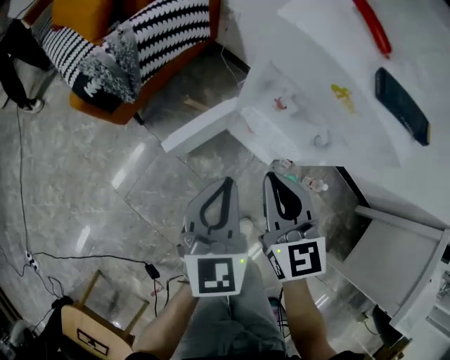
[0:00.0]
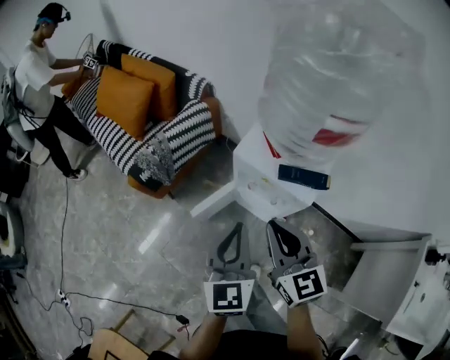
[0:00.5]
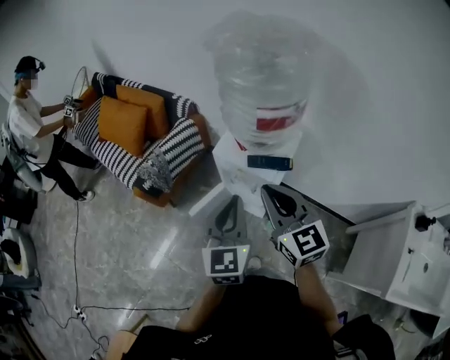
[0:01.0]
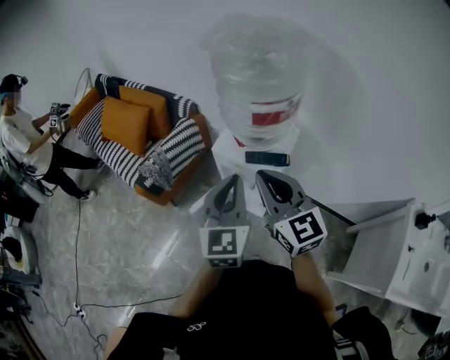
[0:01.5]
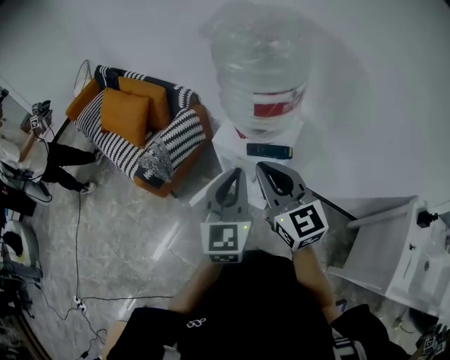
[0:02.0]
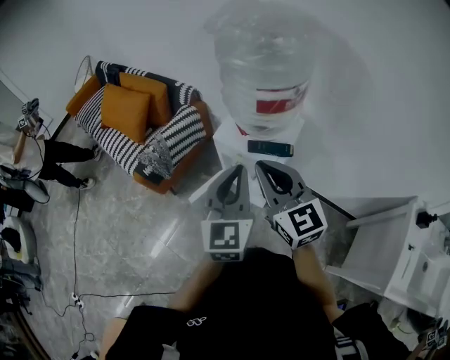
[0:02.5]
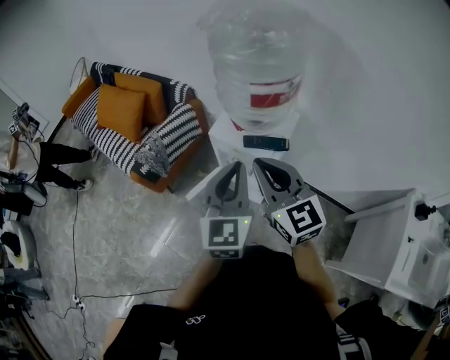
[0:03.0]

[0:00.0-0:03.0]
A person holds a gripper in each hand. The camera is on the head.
0.0 to 1.5 s: Both grippers move upward, some 40 cm. The right gripper rotates about 20 degrees.
1.5 to 3.0 s: There are only small adjustments of the grippers.

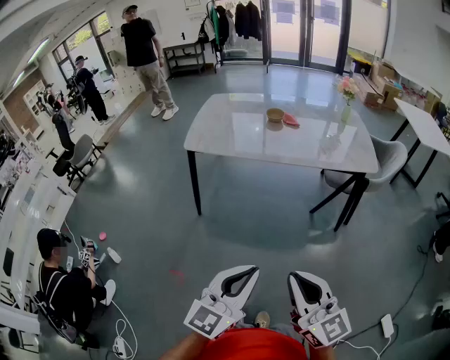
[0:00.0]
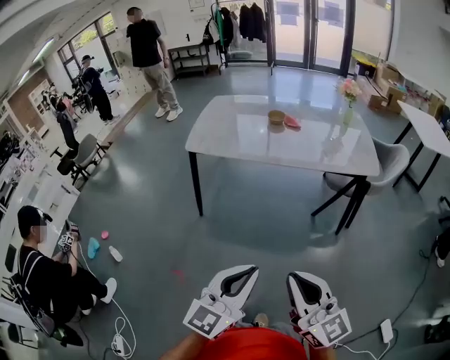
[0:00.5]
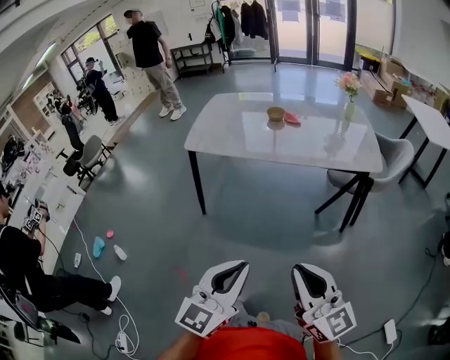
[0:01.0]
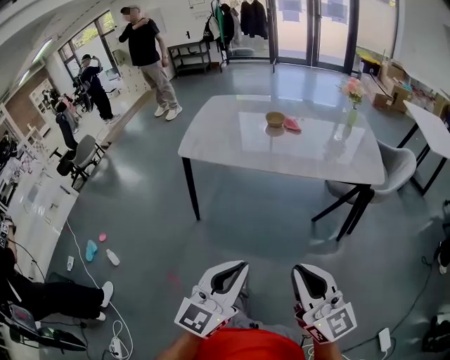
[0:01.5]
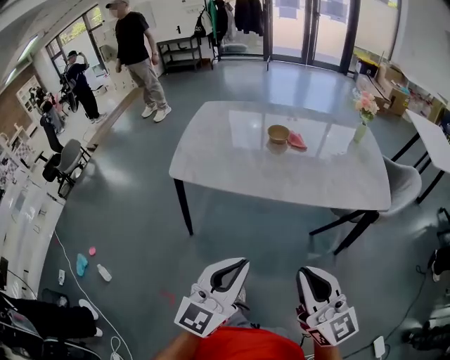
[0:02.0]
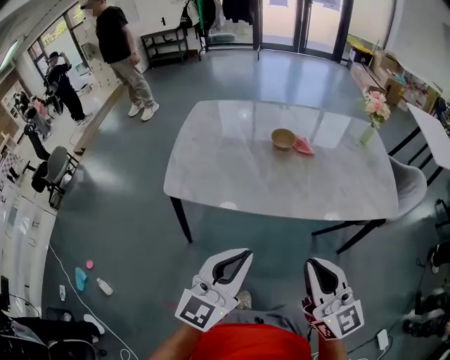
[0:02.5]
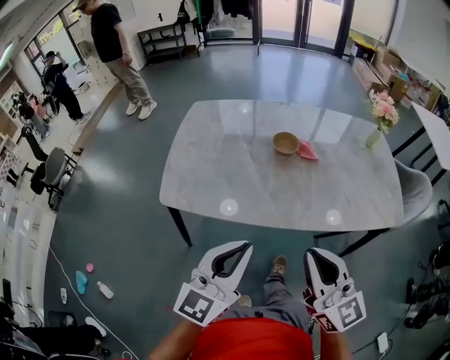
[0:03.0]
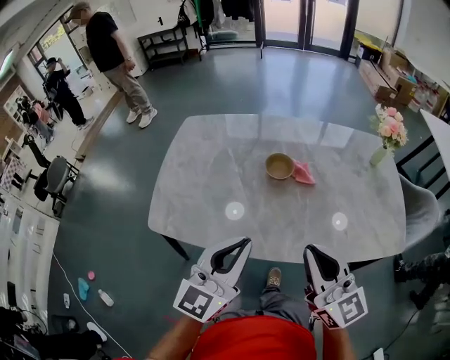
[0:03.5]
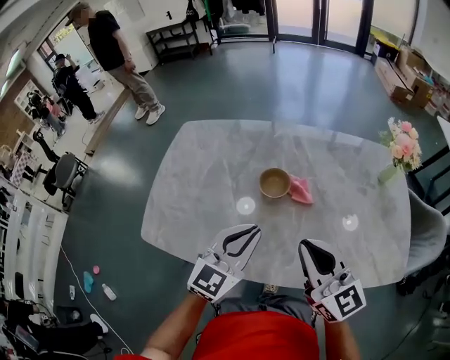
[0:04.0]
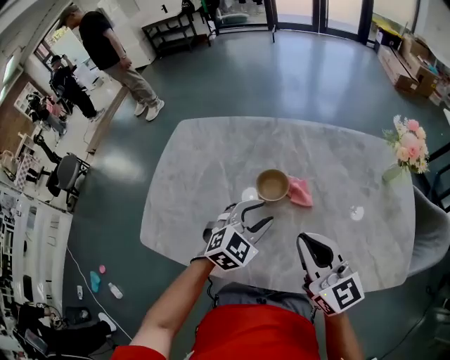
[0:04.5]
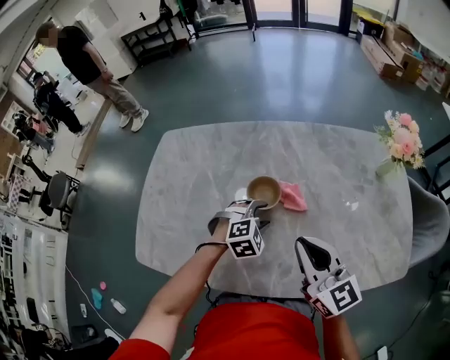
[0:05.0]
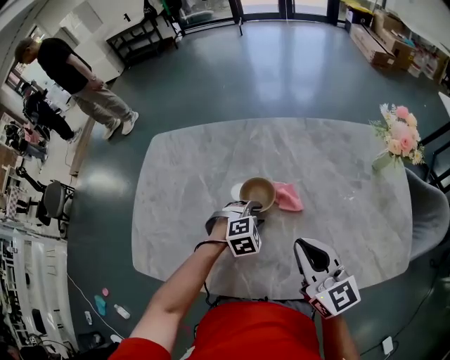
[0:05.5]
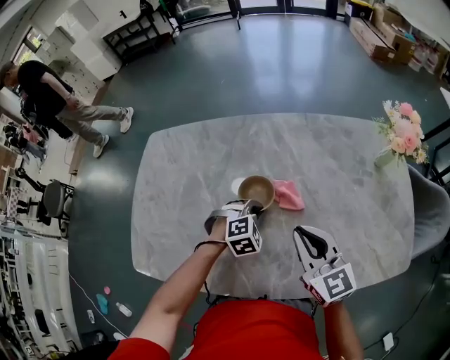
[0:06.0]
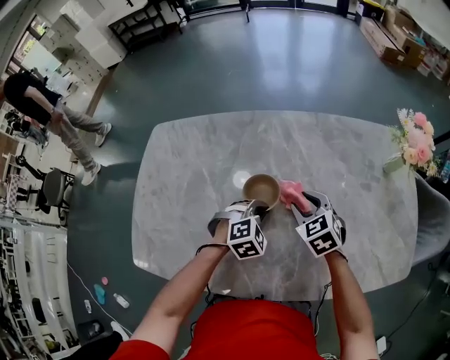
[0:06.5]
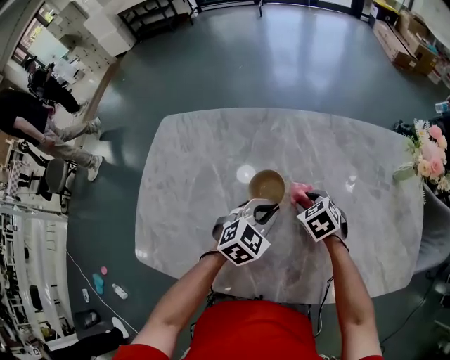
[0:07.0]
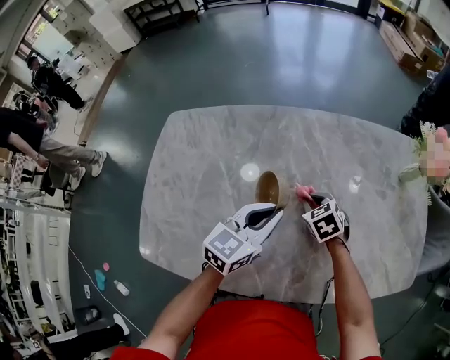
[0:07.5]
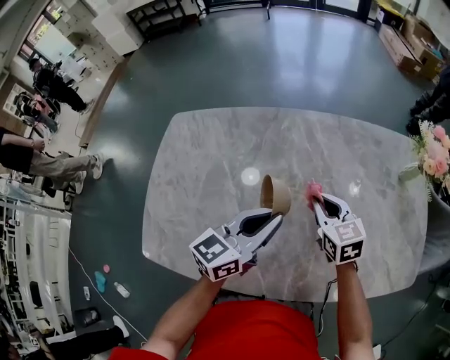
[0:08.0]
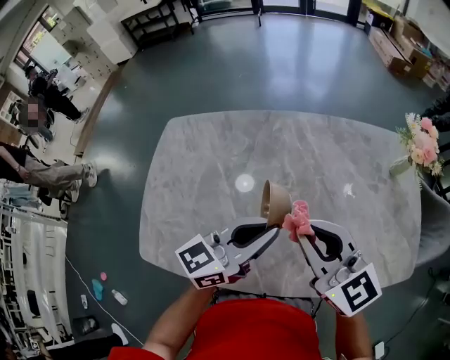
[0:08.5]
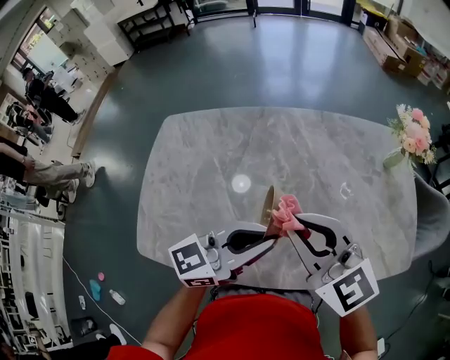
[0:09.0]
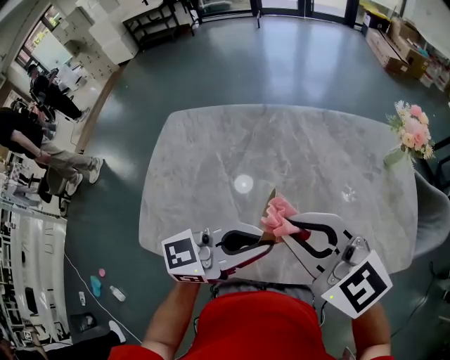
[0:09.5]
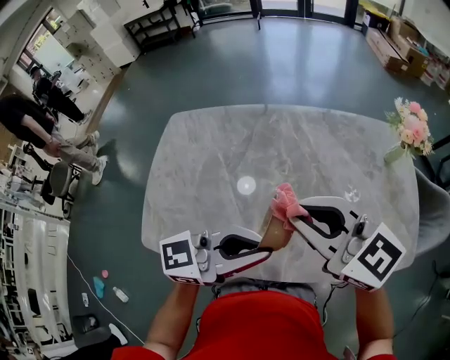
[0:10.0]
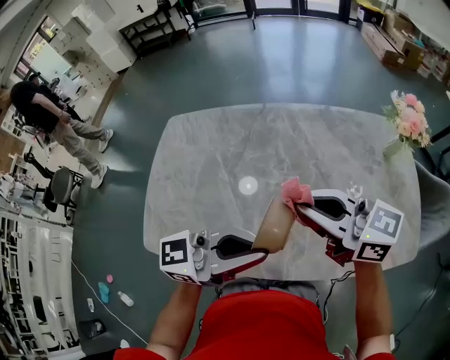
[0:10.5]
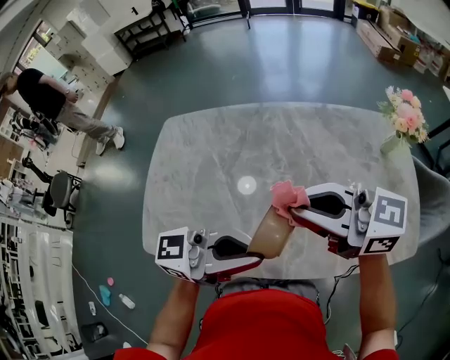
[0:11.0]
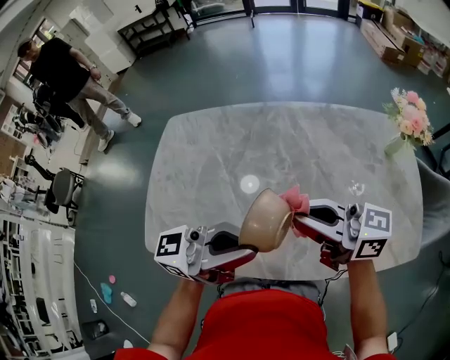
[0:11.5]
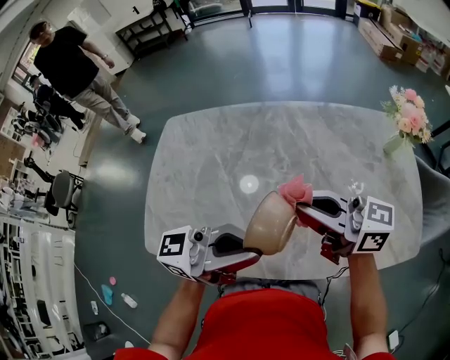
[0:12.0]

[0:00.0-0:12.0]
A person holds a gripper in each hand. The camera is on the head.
0.0 to 2.0 s: The grippers both shift forward by about 25 cm.
2.0 to 4.0 s: Both grippers are carried forward, approximately 40 cm.
4.0 to 6.0 s: The right gripper heads forward and downward, covering roughly 15 cm. The left gripper shifts approximately 25 cm downward and forward, tips its fingers downward by approximately 50 degrees, and opens, then closes once more.
6.0 to 8.0 s: The right gripper shifts some 15 cm forward and downward, and opens and closes again. Meanwhile the left gripper is displaced upward by approximately 20 cm, and points its fingers roughly 60 degrees further upward.
8.0 to 10.0 s: The left gripper shifts by some 20 cm, and rotates roughly 30 degrees. Meanwhile the right gripper goes about 25 cm upward, and changes its angle by roughly 40 degrees.
10.0 to 12.0 s: The left gripper turns by approximately 20 degrees, while the right gripper turns by roughly 30 degrees.

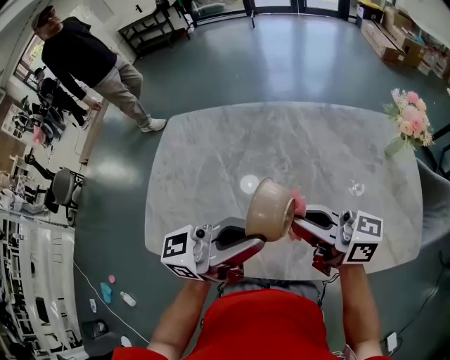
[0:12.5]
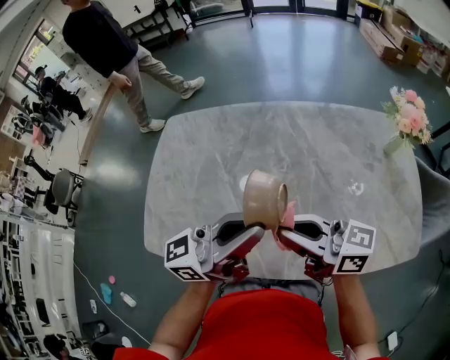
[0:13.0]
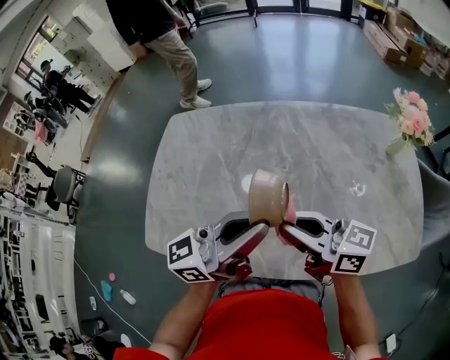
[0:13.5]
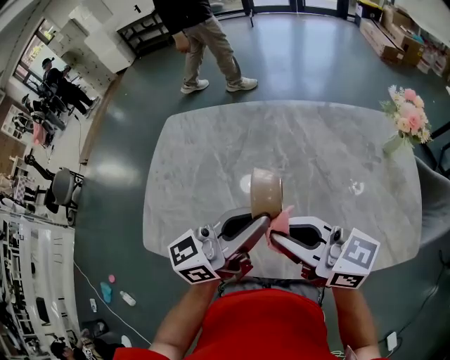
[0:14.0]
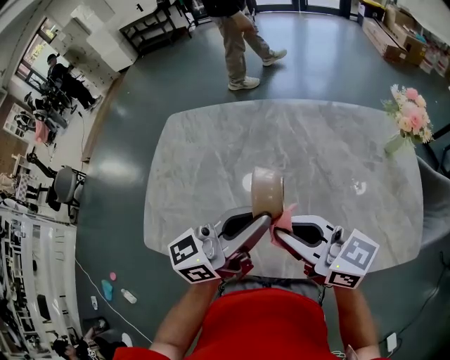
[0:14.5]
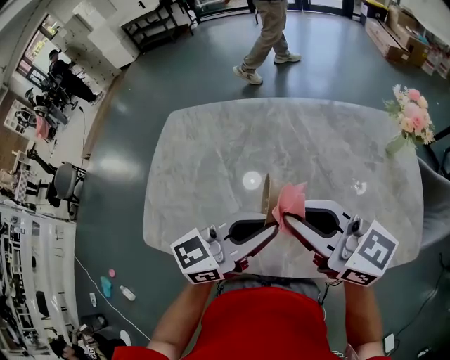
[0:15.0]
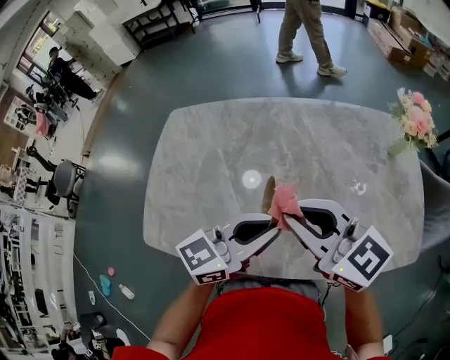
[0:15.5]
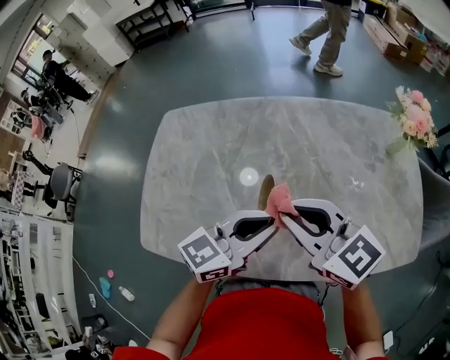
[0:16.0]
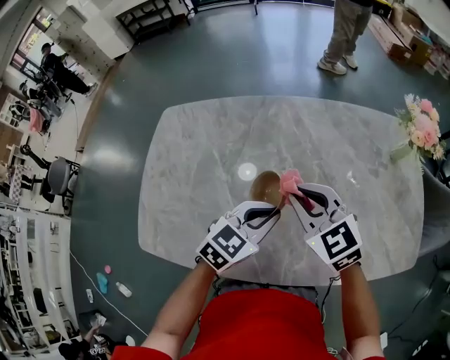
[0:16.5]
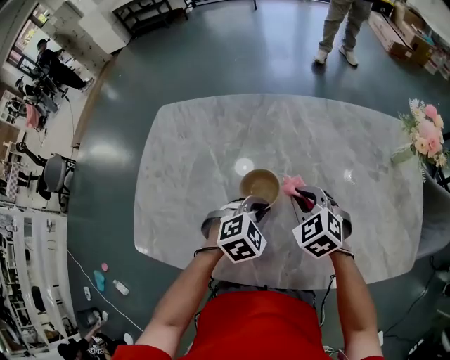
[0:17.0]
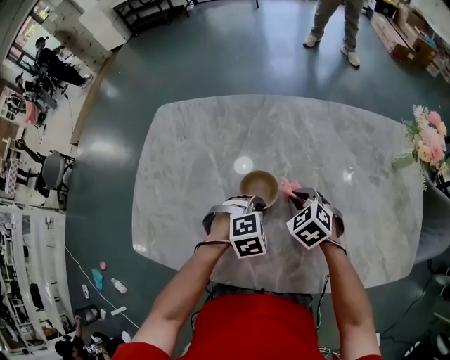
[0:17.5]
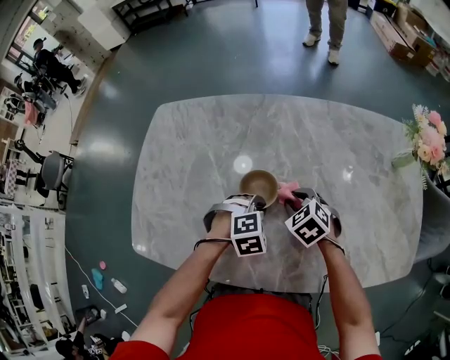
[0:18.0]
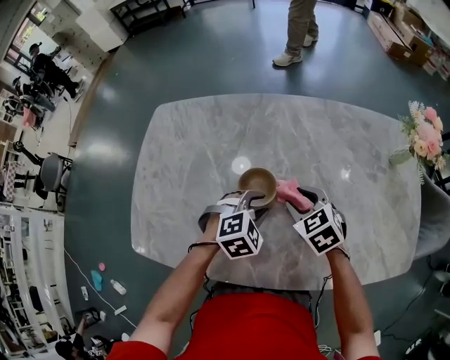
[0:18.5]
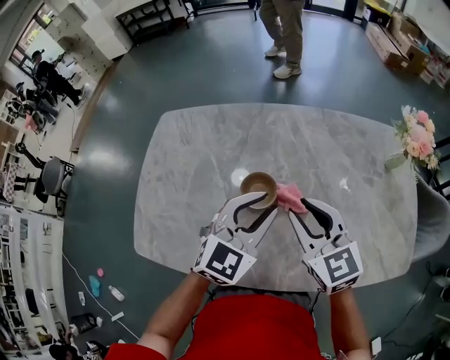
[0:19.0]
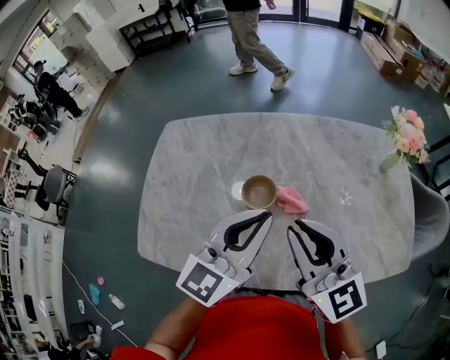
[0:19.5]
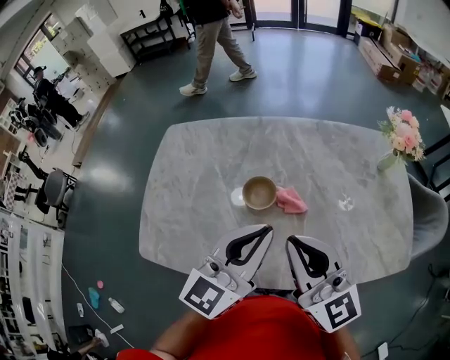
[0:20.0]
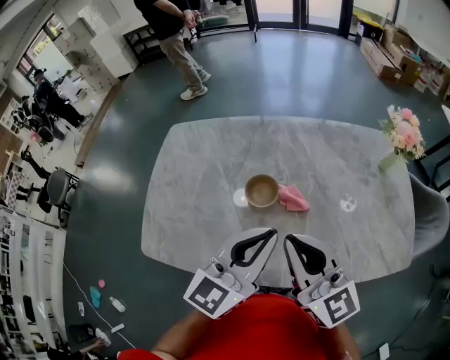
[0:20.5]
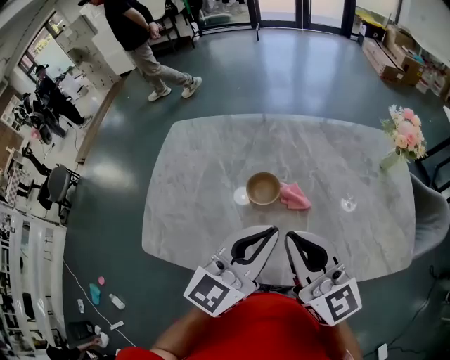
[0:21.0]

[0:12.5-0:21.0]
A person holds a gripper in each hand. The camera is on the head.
12.5 to 14.5 s: The left gripper ends up approximately 5 cm from where it was, and swivels approximately 20 degrees.
14.5 to 16.5 s: The right gripper moves forward and downward, approximately 15 cm, and turns by some 40 degrees; the left gripper goes roughly 15 cm downward, and tilts its fingers about 50 degrees downward.
16.5 to 19.0 s: The right gripper goes downward and returns, about 20 cm each way, and opens. The left gripper moves roughly 15 cm downward and comes back, rotates about 20 degrees, and opens its fingers.
19.0 to 21.0 s: Both grippers move backward and upward, roughly 15 cm. The left gripper rotates about 30 degrees, and closes its fingers. The right gripper rotates about 30 degrees, and closes up.

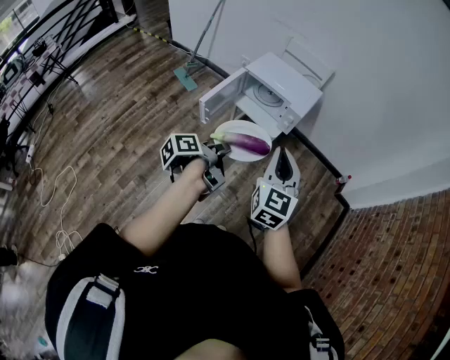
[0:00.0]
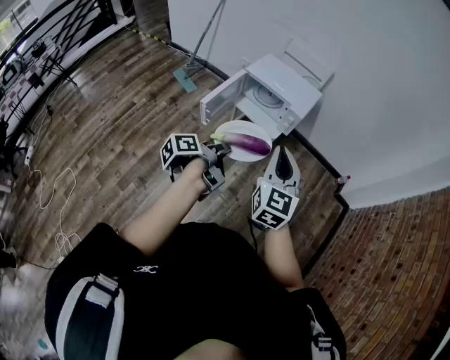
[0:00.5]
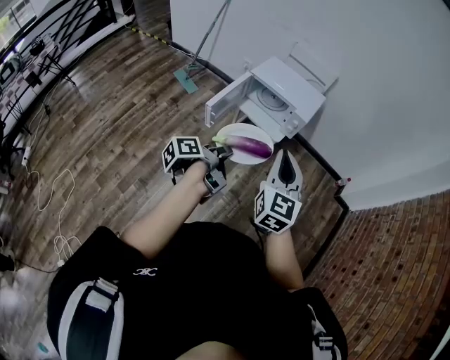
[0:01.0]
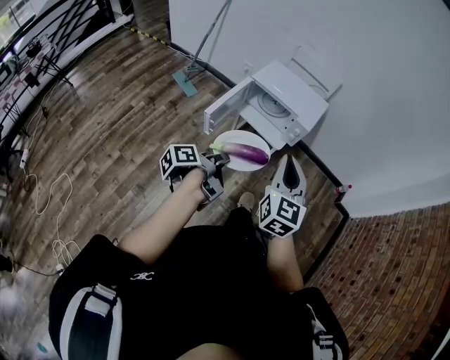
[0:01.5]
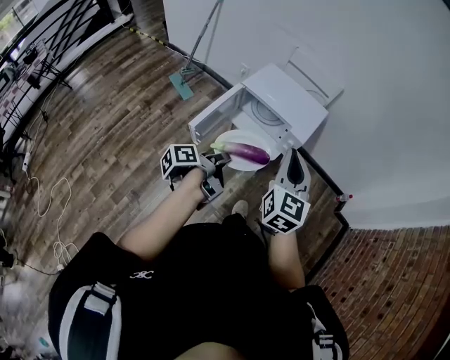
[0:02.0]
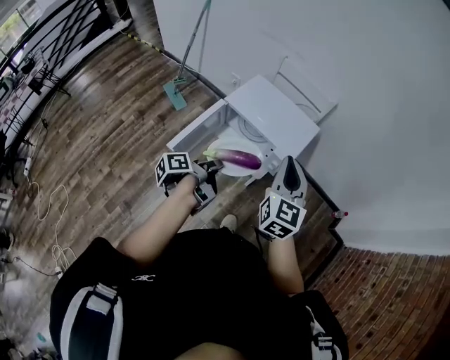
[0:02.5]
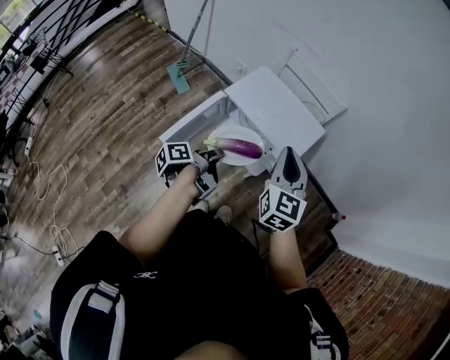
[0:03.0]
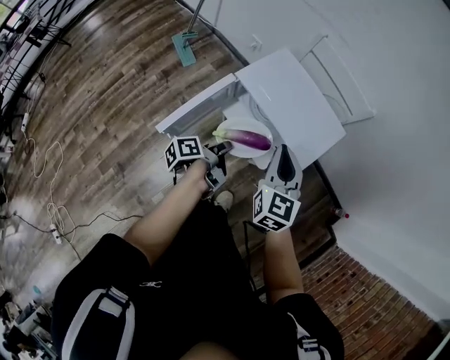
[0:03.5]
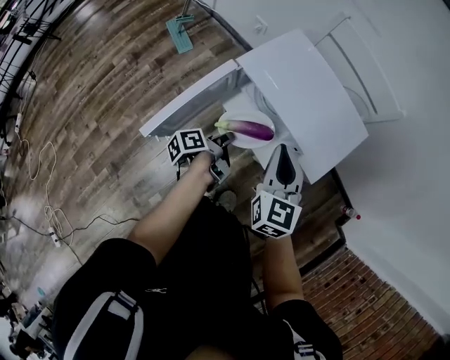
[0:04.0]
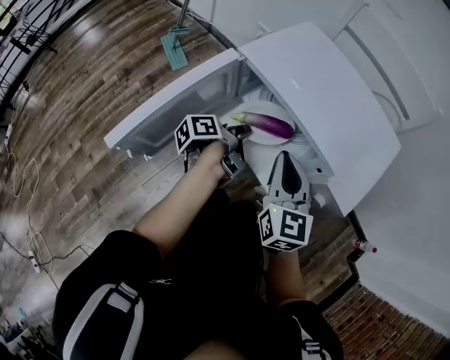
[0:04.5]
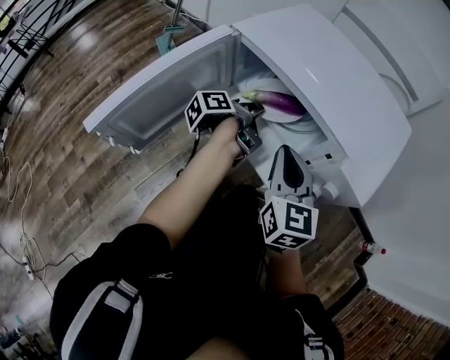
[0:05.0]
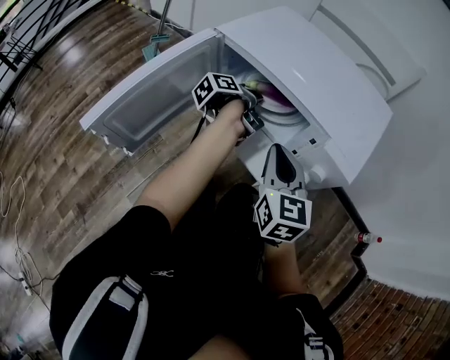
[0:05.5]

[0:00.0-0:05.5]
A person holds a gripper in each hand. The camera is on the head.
0.0 to 2.0 s: The right gripper shifts by some 20 cm.
2.0 to 3.5 s: The right gripper changes place by about 25 cm.
3.5 to 5.5 s: The right gripper is displaced downward by some 30 cm.
